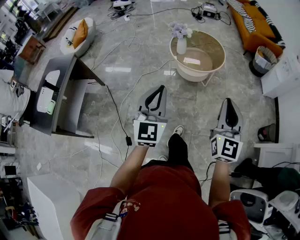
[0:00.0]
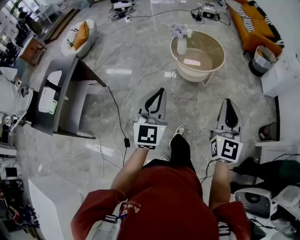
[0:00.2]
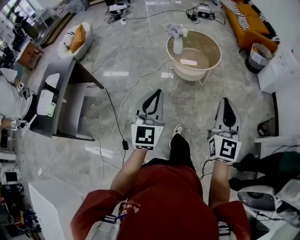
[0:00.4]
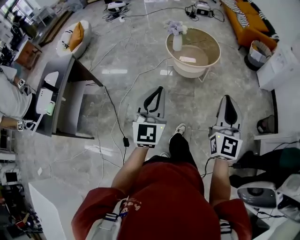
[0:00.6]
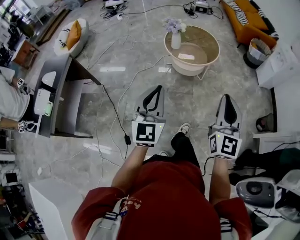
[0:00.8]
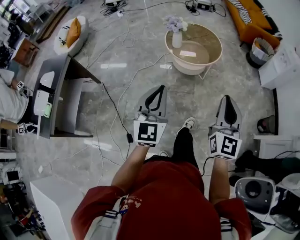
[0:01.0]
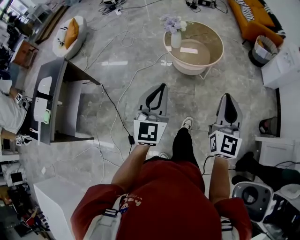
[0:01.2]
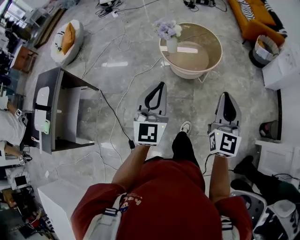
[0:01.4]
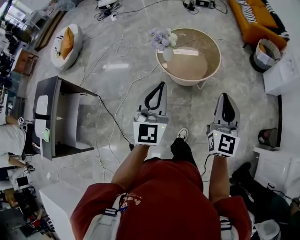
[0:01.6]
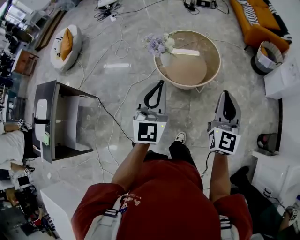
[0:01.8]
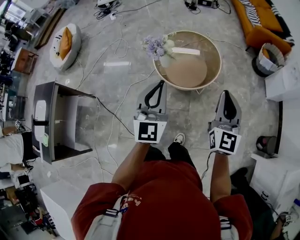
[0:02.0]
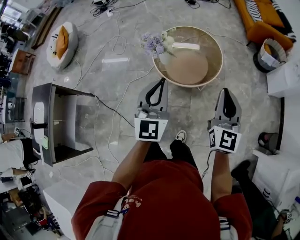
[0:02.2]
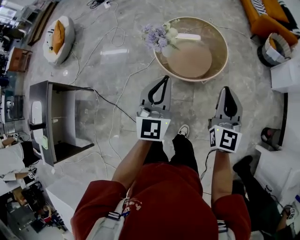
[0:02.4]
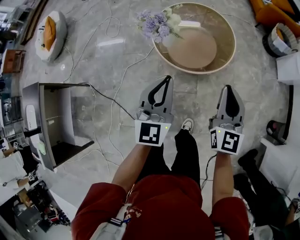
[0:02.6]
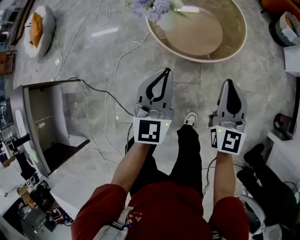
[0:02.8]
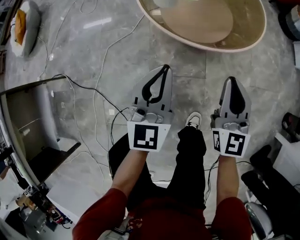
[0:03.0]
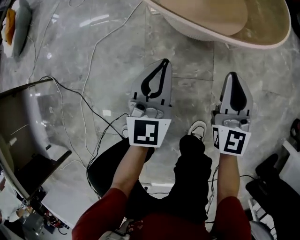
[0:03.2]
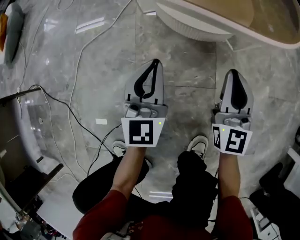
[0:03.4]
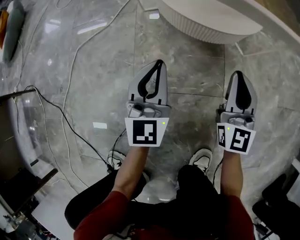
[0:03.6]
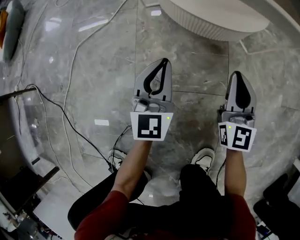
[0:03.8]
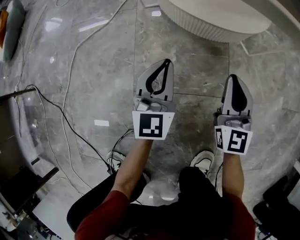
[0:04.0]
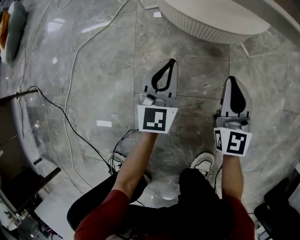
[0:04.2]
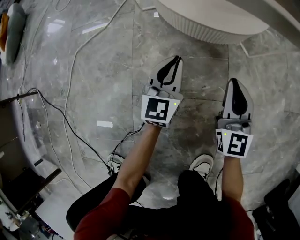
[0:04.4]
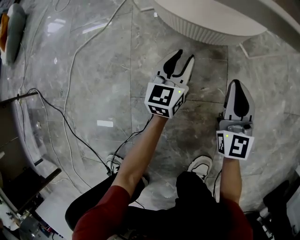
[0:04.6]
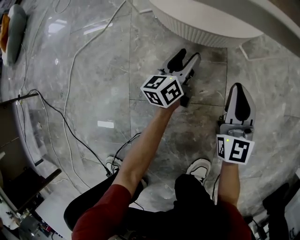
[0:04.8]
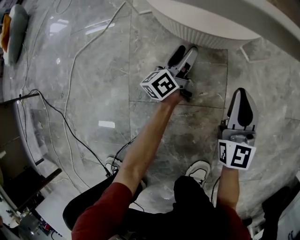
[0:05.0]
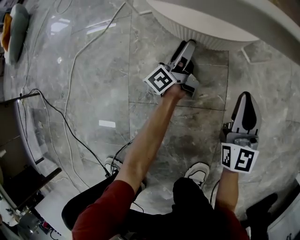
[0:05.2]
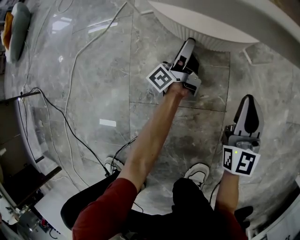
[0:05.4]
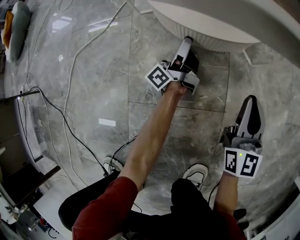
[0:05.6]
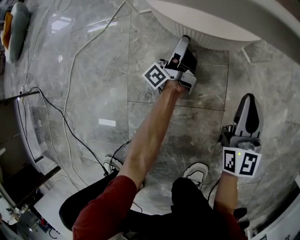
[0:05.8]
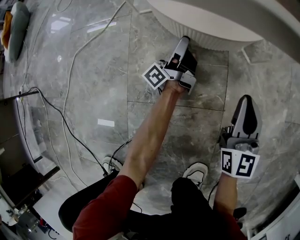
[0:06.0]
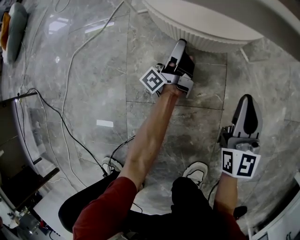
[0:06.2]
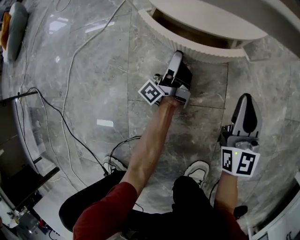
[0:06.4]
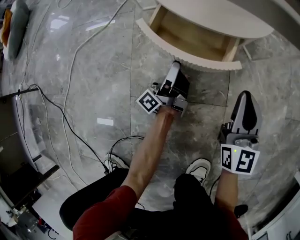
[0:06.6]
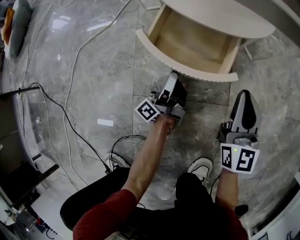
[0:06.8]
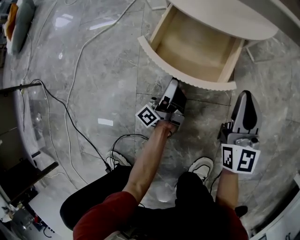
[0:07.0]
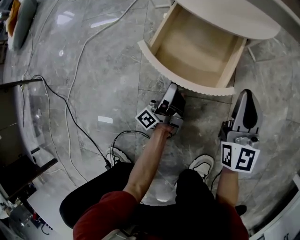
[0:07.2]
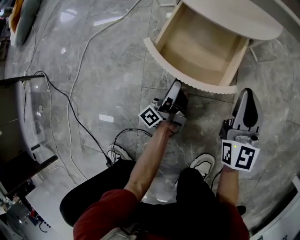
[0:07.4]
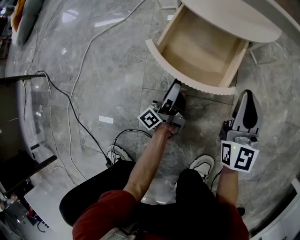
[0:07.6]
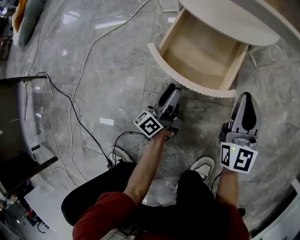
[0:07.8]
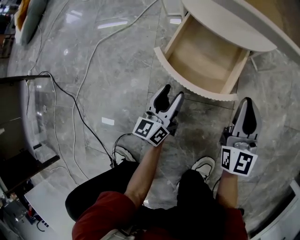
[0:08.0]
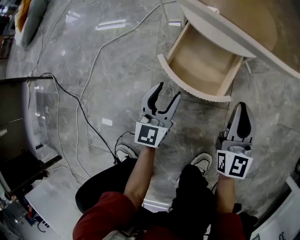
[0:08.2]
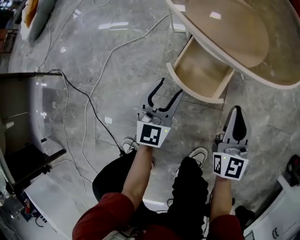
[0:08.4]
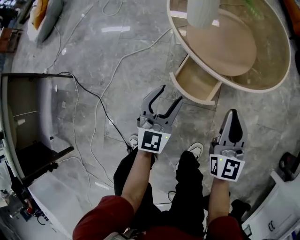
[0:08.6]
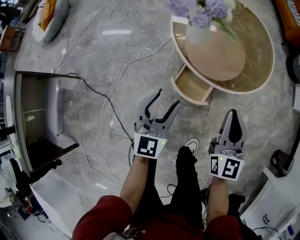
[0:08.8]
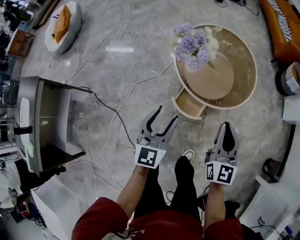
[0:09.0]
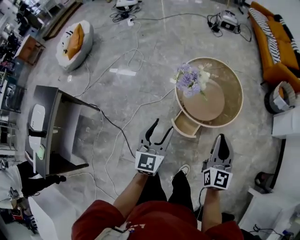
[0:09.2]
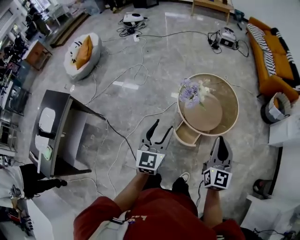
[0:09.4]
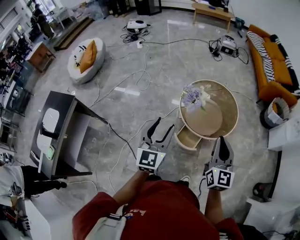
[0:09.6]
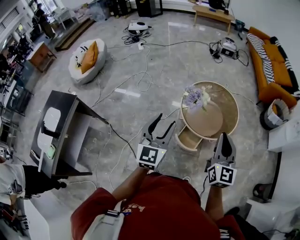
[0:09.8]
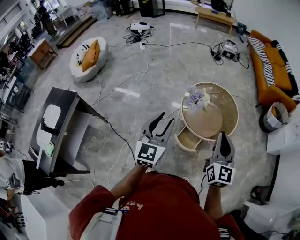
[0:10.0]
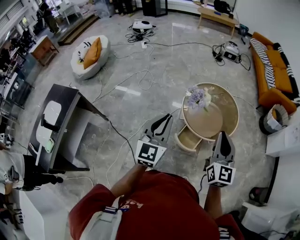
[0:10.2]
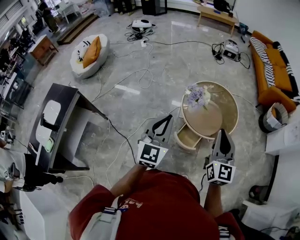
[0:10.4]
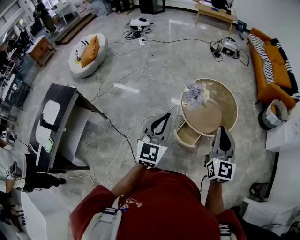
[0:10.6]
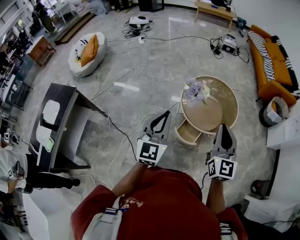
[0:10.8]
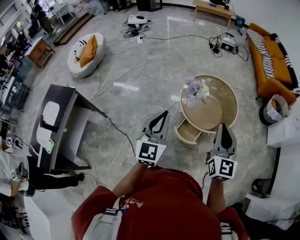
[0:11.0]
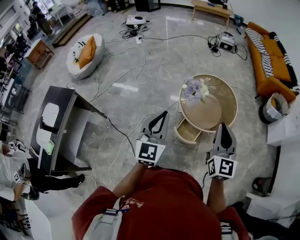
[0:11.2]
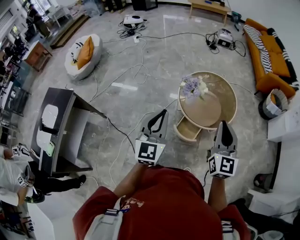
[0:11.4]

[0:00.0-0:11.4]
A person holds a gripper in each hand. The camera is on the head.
0:00.0 to 0:01.4: The two grippers go some 15 cm forward.
0:01.4 to 0:02.8: Both grippers travel together downward and forward, roughly 35 cm.
0:02.8 to 0:04.2: The two grippers go roughly 60 cm downward.
0:04.2 to 0:05.6: The left gripper moves forward and downward, approximately 15 cm, rolls counterclockwise, seen from behind, by roughly 80 degrees, and opens, while the right gripper is displaced to the right by approximately 10 cm.
0:05.6 to 0:07.2: The right gripper travels to the left by approximately 5 cm, while the left gripper goes roughly 20 cm backward.
0:07.2 to 0:08.6: The two grippers go roughly 35 cm upward. The left gripper rolls clockwise, seen from behind, by about 90 degrees.
0:08.6 to 0:10.0: Both grippers move upward, about 60 cm.
0:10.0 to 0:11.4: The left gripper closes.

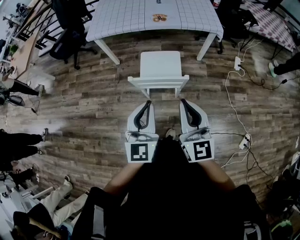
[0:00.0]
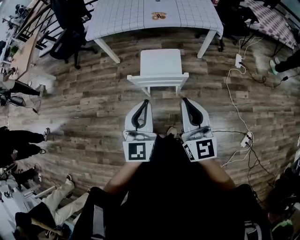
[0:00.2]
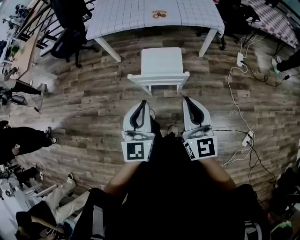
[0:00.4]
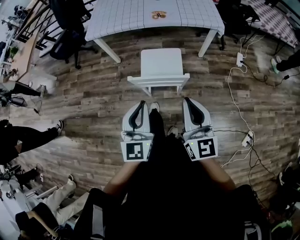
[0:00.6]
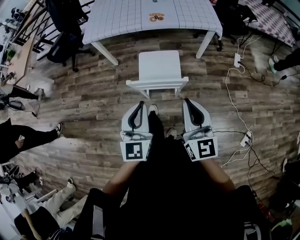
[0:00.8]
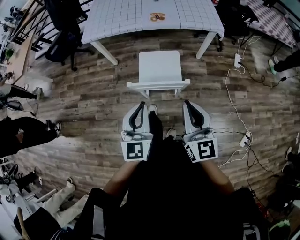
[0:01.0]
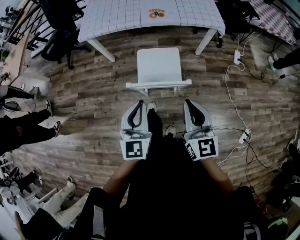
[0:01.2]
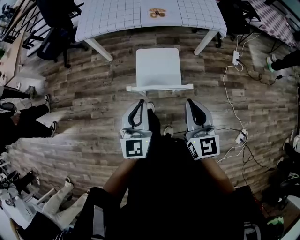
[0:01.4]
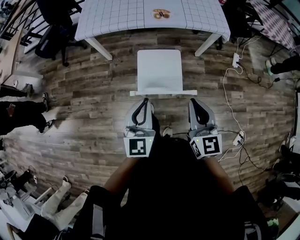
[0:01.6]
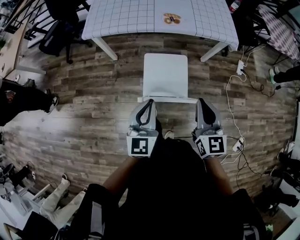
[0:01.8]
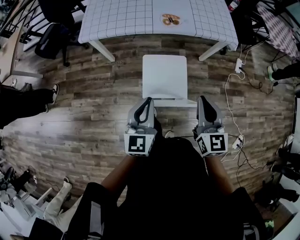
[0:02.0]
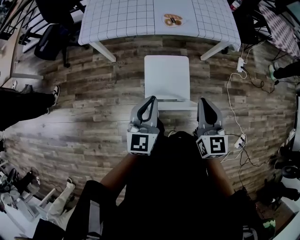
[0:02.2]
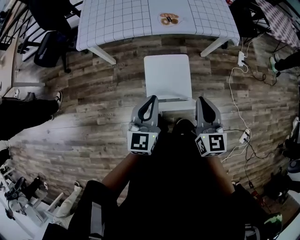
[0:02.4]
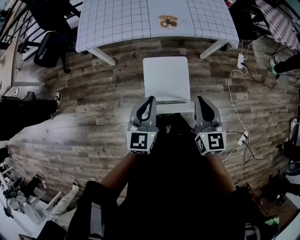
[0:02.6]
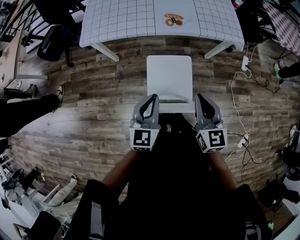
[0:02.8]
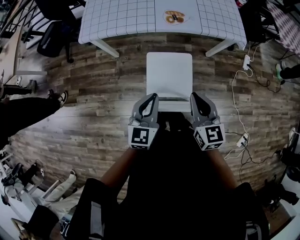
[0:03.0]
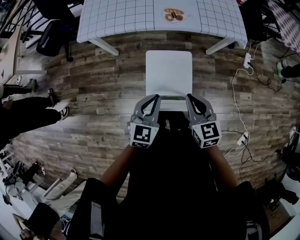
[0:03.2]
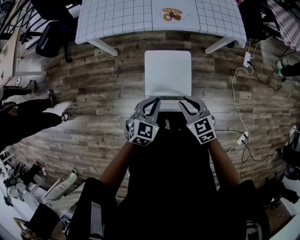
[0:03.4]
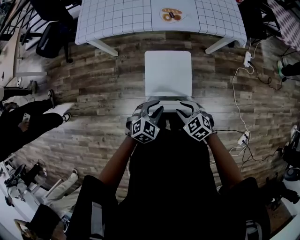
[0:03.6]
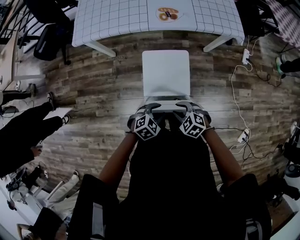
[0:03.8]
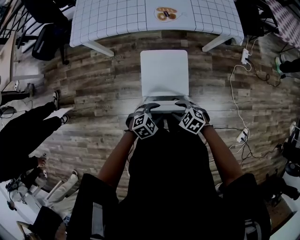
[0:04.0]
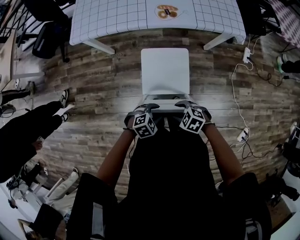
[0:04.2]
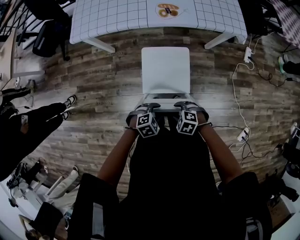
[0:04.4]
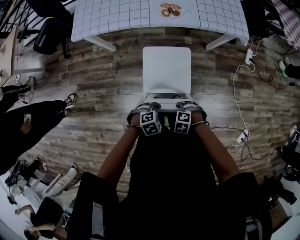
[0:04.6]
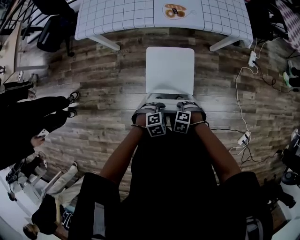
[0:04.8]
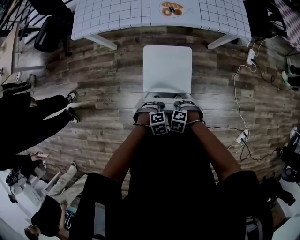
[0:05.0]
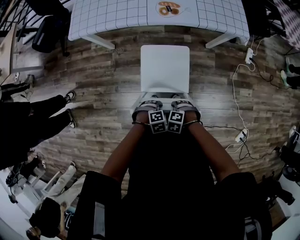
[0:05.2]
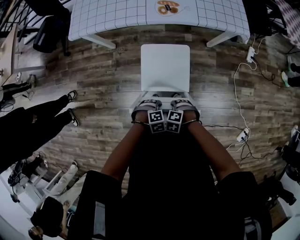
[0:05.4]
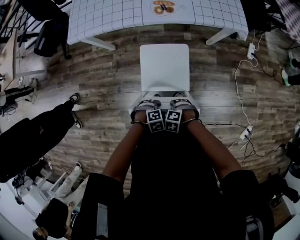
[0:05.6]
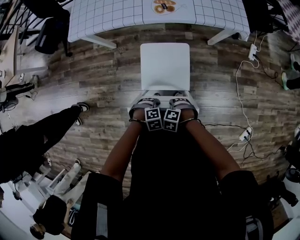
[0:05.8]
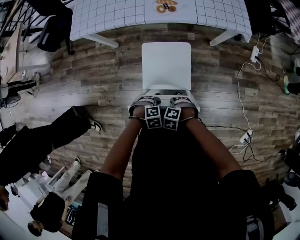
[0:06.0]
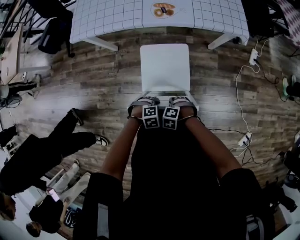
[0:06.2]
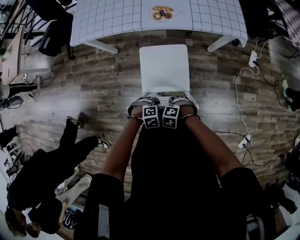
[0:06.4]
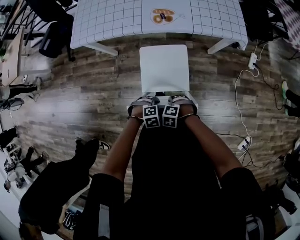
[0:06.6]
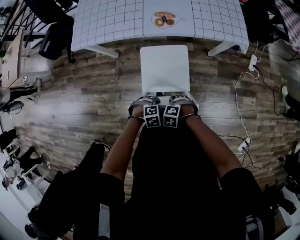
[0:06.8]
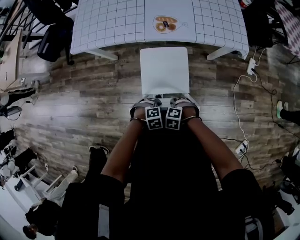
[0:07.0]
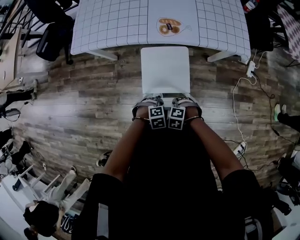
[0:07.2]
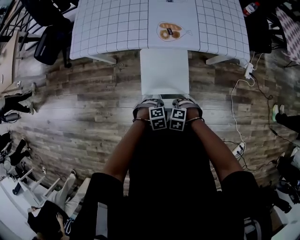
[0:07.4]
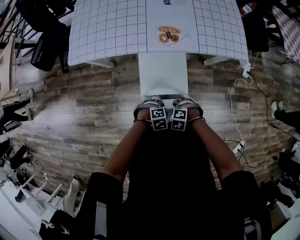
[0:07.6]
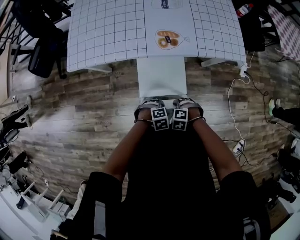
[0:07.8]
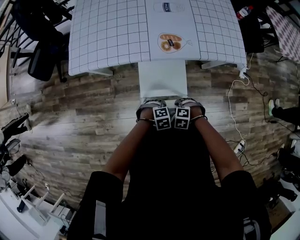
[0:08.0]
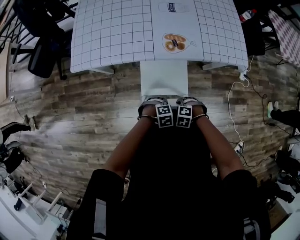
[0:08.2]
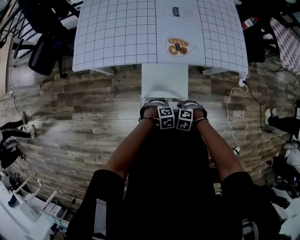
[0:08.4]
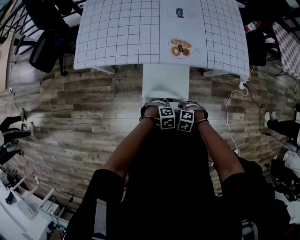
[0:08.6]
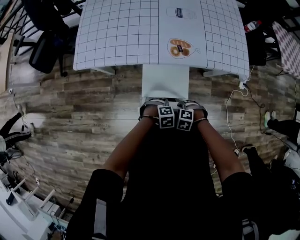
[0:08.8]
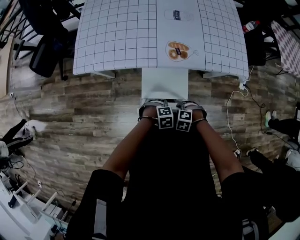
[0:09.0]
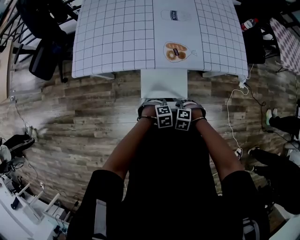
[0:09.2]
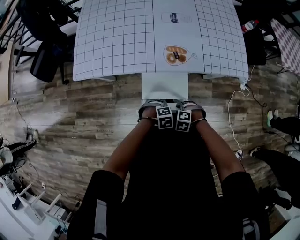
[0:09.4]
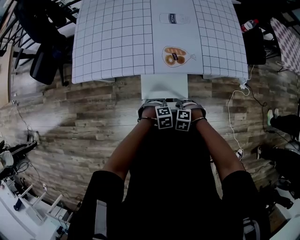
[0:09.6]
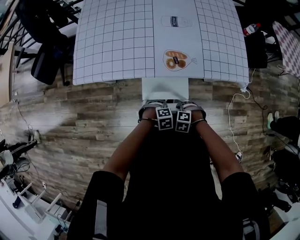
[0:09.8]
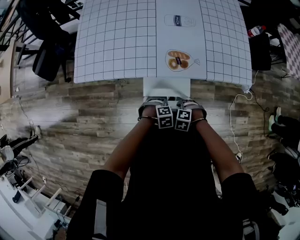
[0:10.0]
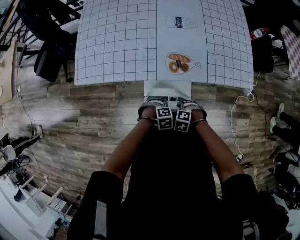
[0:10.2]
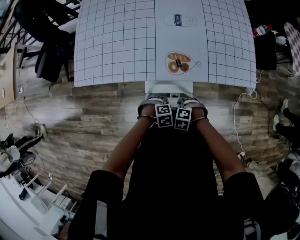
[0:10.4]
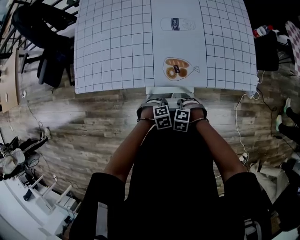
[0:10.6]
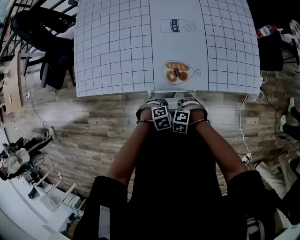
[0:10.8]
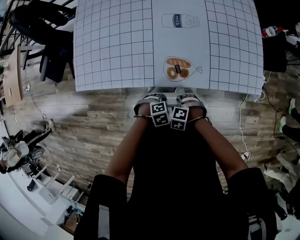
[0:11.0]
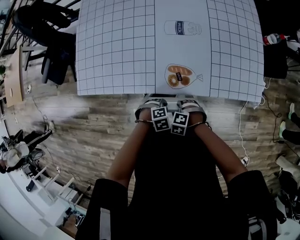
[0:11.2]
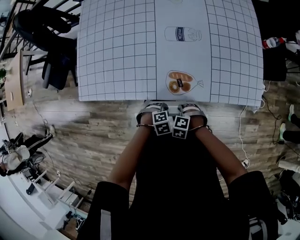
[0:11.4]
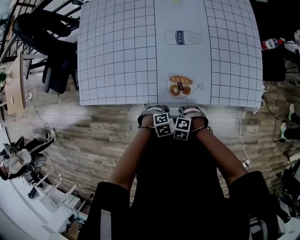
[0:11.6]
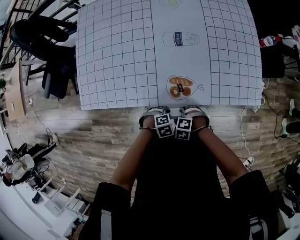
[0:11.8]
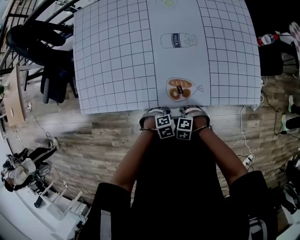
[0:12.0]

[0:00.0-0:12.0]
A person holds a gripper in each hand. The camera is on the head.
0:00.0 to 0:01.6: The two grippers go roughly 15 cm forward and downward.
0:01.6 to 0:03.0: Both grippers travel together forward, about 15 cm.
0:03.0 to 0:04.4: Both grippers move downward, approximately 25 cm. The right gripper angles its fingers downward, by some 50 degrees, and opens up; the left gripper tips its fingers downward by some 40 degrees, and opens its fingers.
0:04.4 to 0:06.0: The grippers both shift downward by roughly 5 cm. The right gripper closes its fingers; the left gripper closes its fingers.
0:06.0 to 0:07.6: The right gripper shifts by some 15 cm, while the left gripper changes place by roughly 15 cm.
0:07.6 to 0:09.0: The left gripper changes place by about 10 cm. The right gripper moves about 10 cm.
0:09.0 to 0:10.4: The right gripper shifts by approximately 10 cm, while the left gripper moves about 10 cm.
0:10.4 to 0:12.0: The left gripper shifts by about 10 cm; the right gripper ends up approximately 10 cm from where it was.
